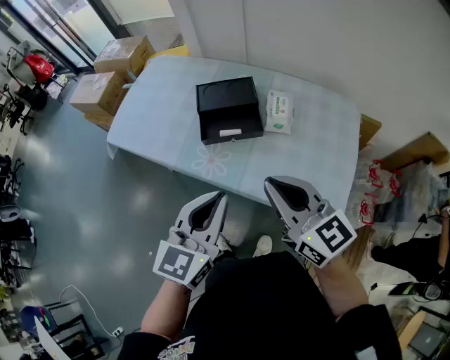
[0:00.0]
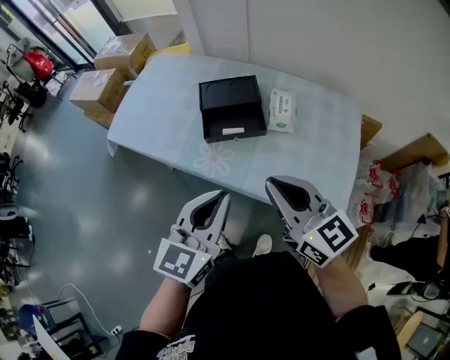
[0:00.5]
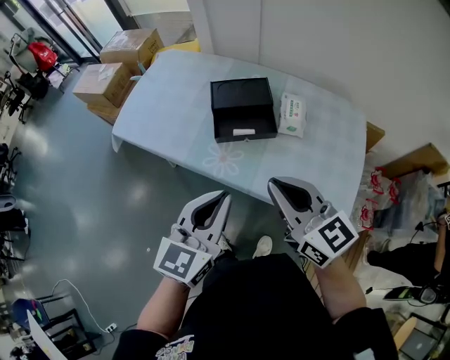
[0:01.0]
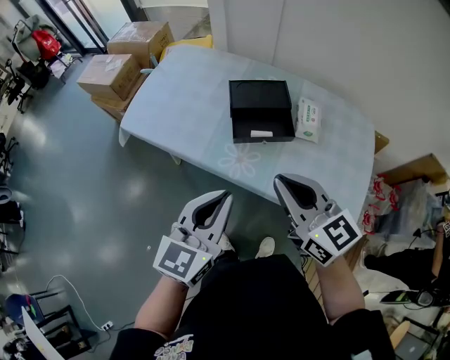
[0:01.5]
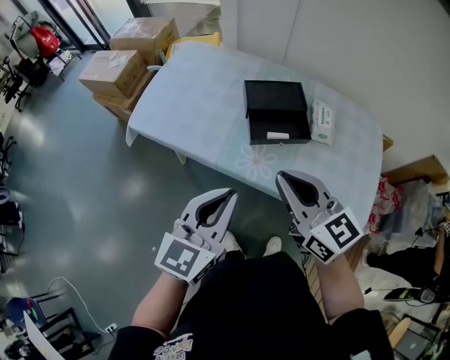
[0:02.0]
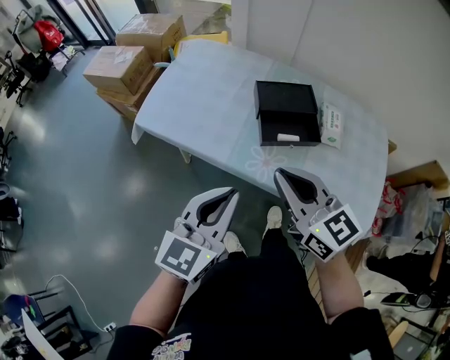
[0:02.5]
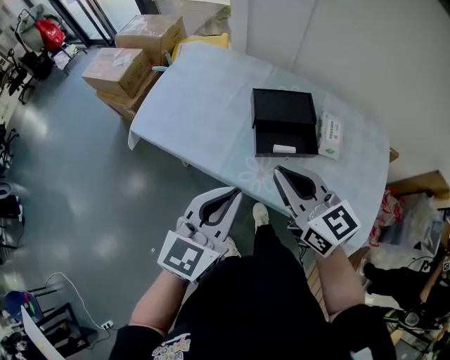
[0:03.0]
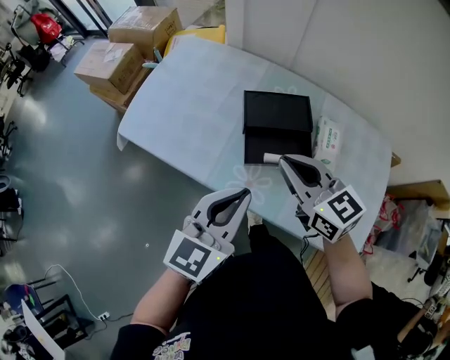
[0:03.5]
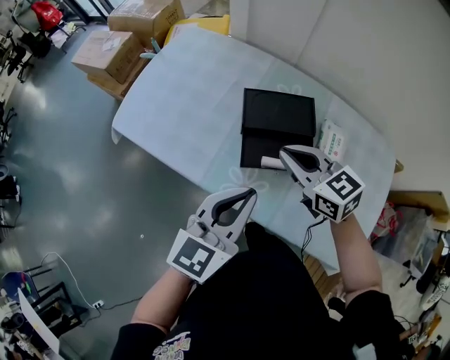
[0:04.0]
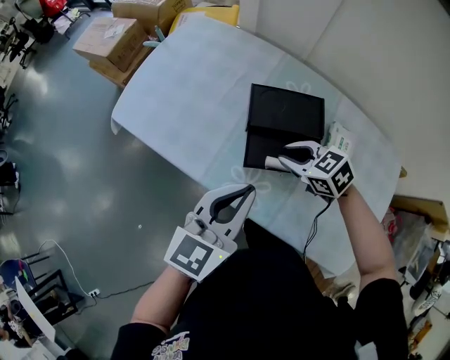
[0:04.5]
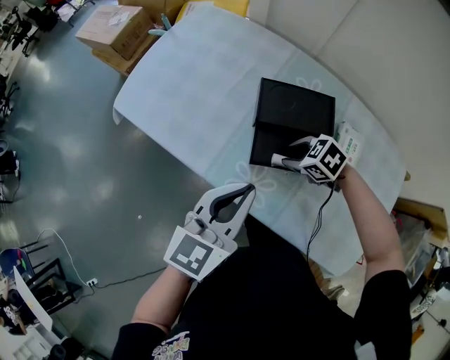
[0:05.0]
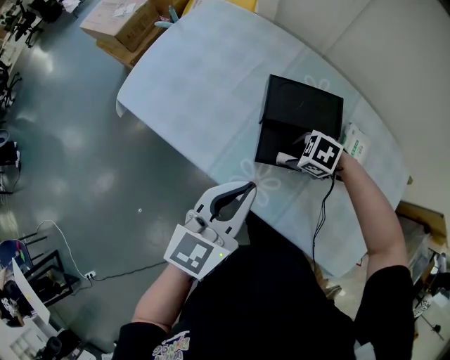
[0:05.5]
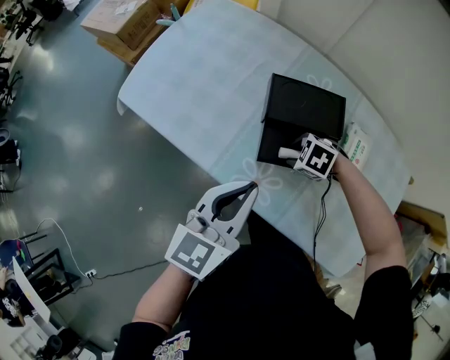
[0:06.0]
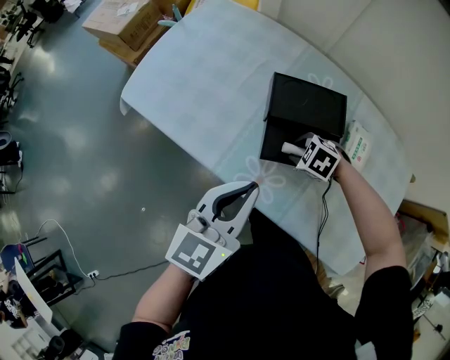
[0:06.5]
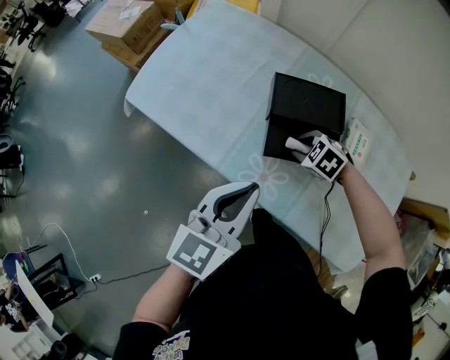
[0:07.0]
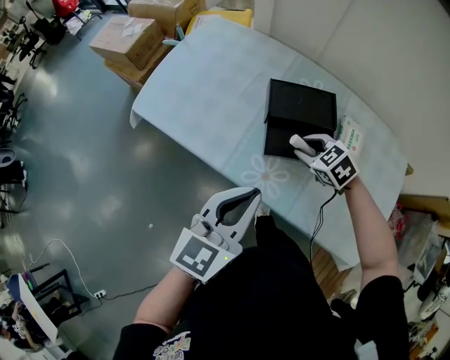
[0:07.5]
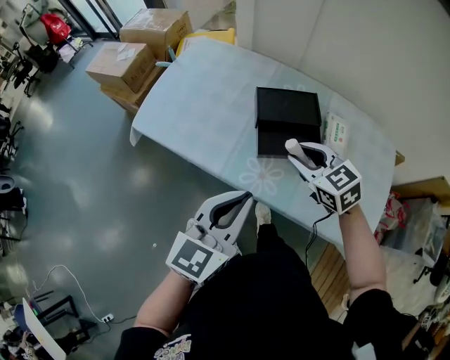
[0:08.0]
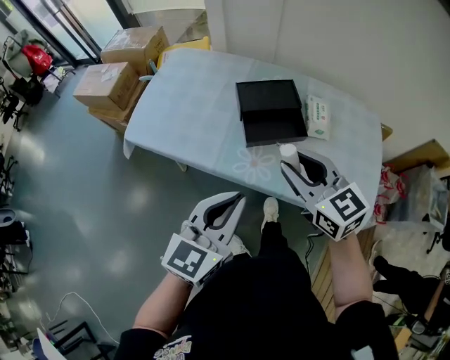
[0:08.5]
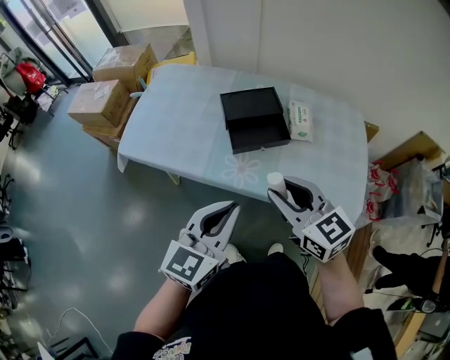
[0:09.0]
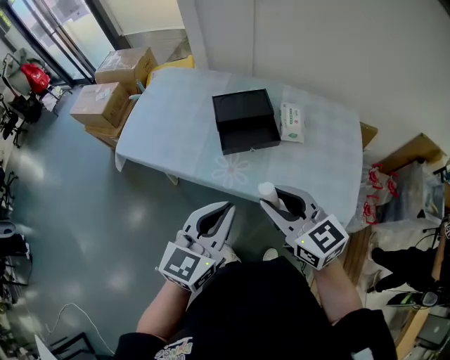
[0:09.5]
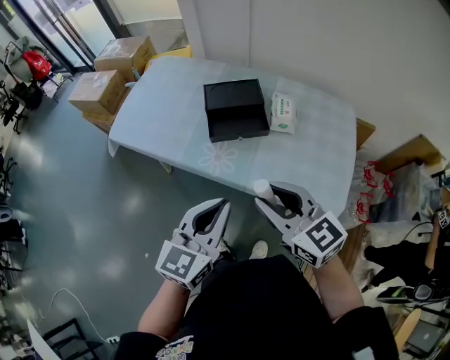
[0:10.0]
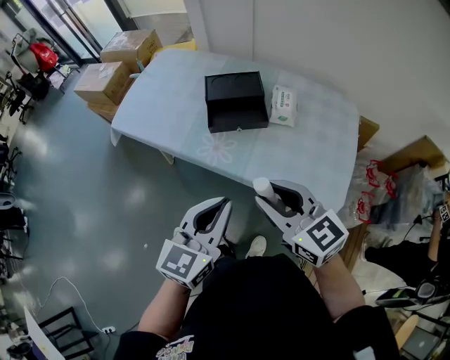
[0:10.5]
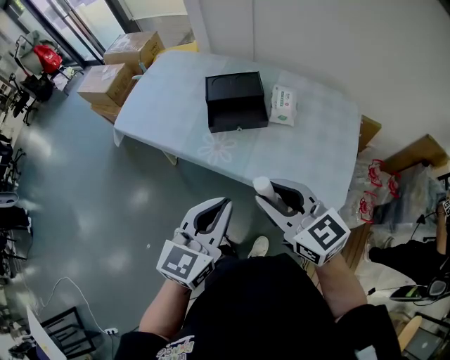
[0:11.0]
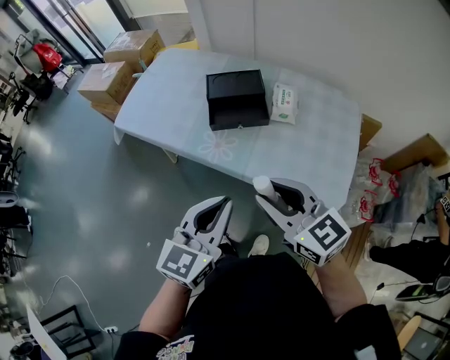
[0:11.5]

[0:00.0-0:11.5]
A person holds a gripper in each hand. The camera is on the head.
0:00.0 to 0:02.0: Both grippers move to the left, about 15 cm.
0:02.0 to 0:04.0: The right gripper goes about 25 cm forward and downward, and swivels about 20 degrees, while the left gripper is displaced forward and to the right by approximately 20 cm.
0:04.0 to 0:06.0: The left gripper moves approximately 5 cm. The right gripper shifts approximately 20 cm downward, tilts its fingers about 50 degrees downward, and opens.
0:06.0 to 0:07.5: The right gripper heads upward, covering roughly 10 cm, and rotates about 30 degrees; the left gripper shifts by about 10 cm.
0:07.5 to 0:09.5: The left gripper moves backward, approximately 15 cm, while the right gripper heads backward and upward, covering approximately 35 cm, and angles its fingers upward, by some 40 degrees.
0:09.5 to 0:11.5: The two grippers go about 10 cm backward and to the right.

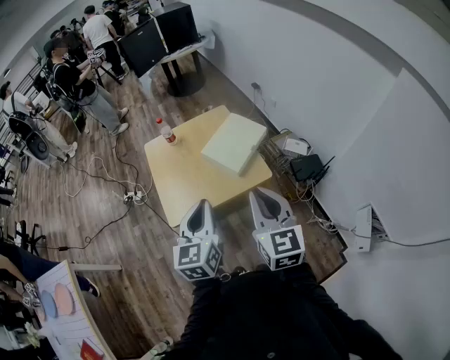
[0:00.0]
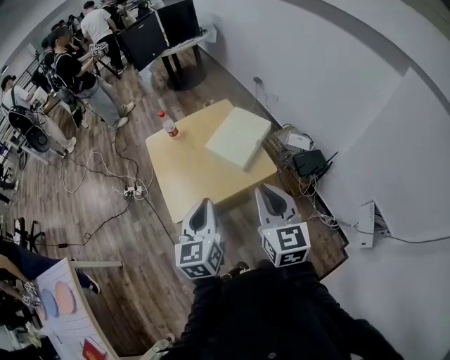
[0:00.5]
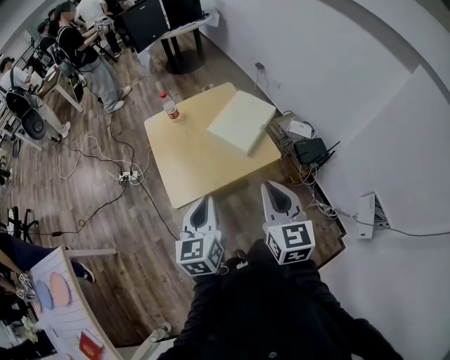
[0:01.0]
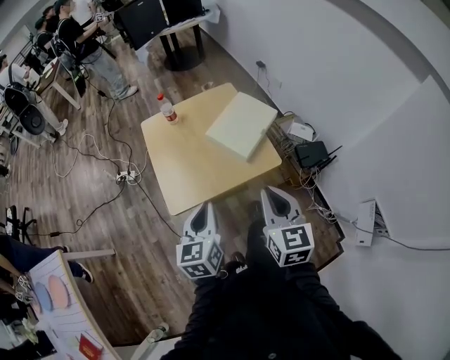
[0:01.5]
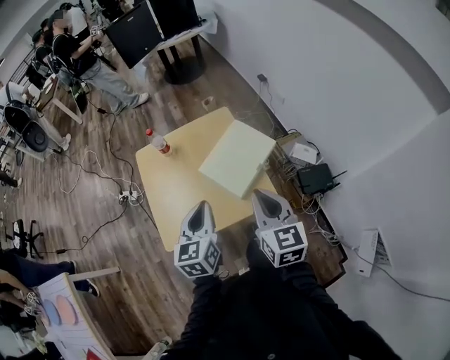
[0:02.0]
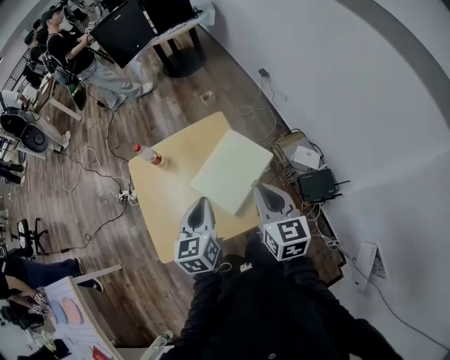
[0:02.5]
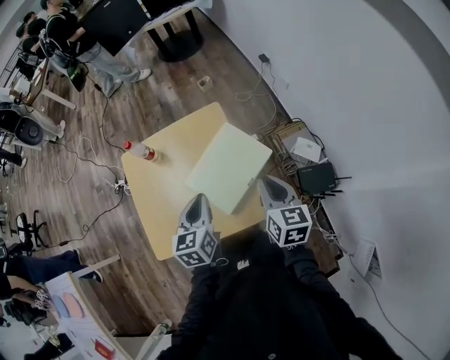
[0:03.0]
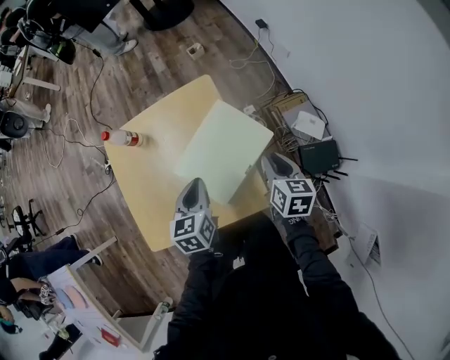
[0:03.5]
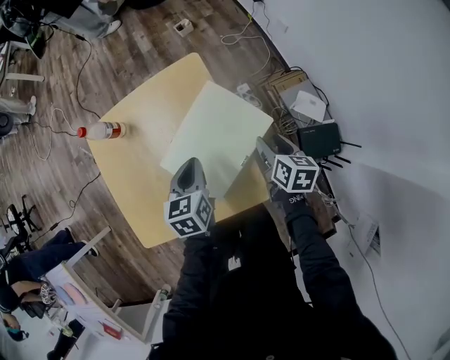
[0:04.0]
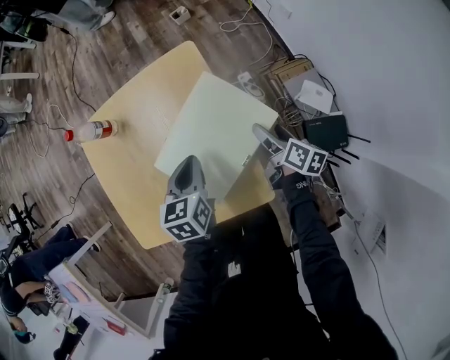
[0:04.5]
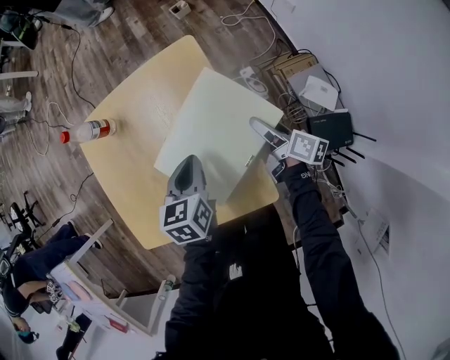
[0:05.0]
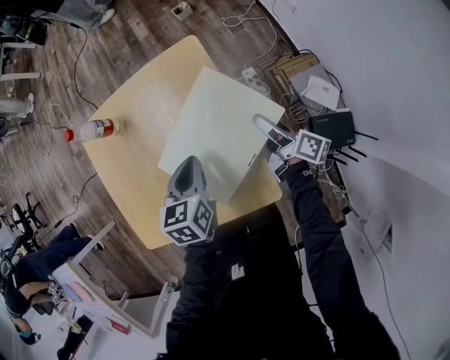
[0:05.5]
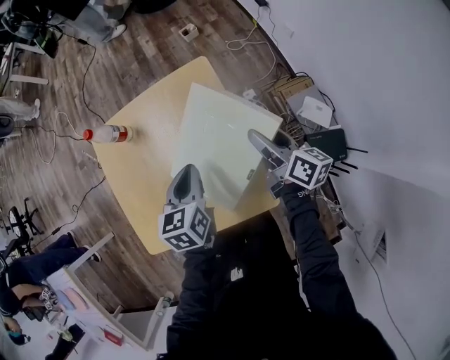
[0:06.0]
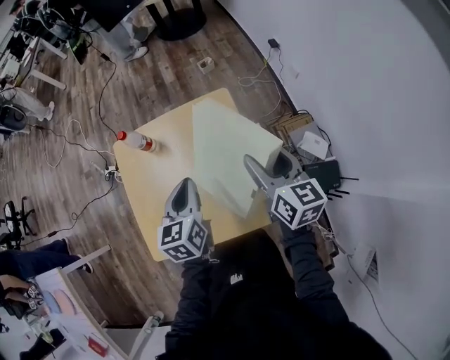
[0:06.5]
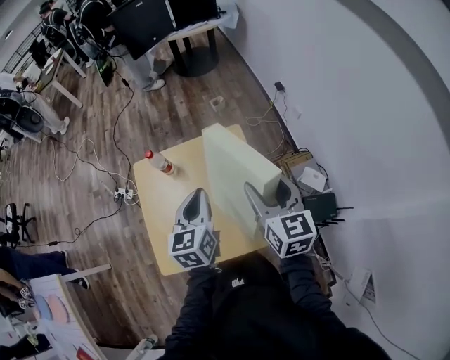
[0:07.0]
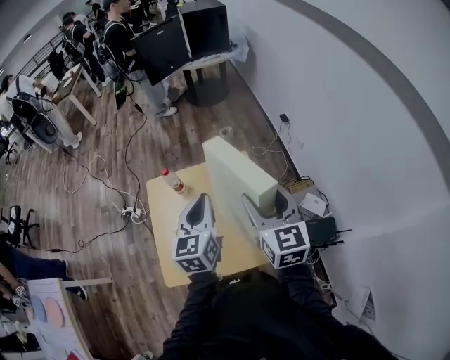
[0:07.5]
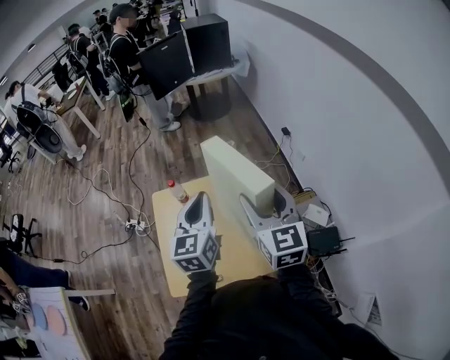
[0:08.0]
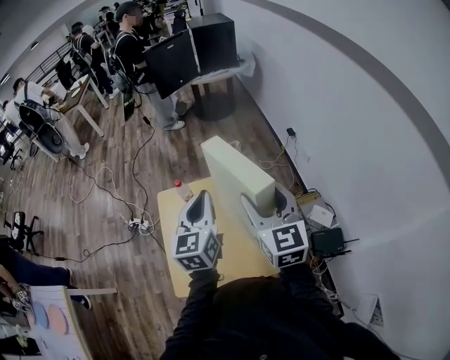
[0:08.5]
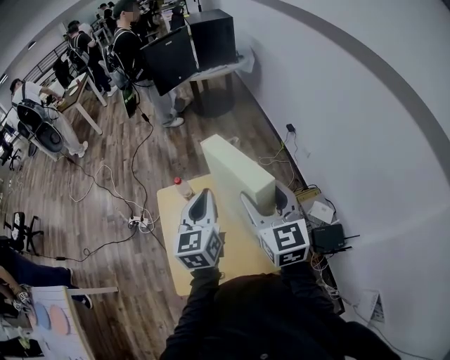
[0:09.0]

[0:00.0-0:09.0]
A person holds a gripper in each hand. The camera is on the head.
0:00.0 to 0:02.0: The right gripper travels forward by approximately 20 cm; the left gripper is displaced forward and downward by roughly 20 cm.
0:02.0 to 0:04.5: The grippers both shift downward, forward and to the right by about 40 cm. The left gripper rotates roughly 20 degrees. Meanwhile the right gripper rolls clockwise, seen from behind, by about 50 degrees, and opens up.
0:04.5 to 0:07.0: The right gripper shifts roughly 40 cm upward and to the left, and rolls counterclockwise, seen from behind, by roughly 50 degrees. Meanwhile the left gripper moves upward and to the left, about 25 cm, and turns by approximately 20 degrees.
0:07.0 to 0:09.0: Both grippers travel together upward and to the left, about 15 cm.

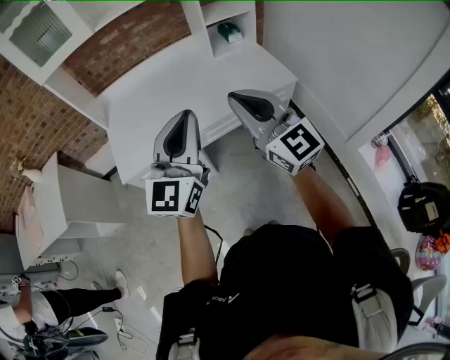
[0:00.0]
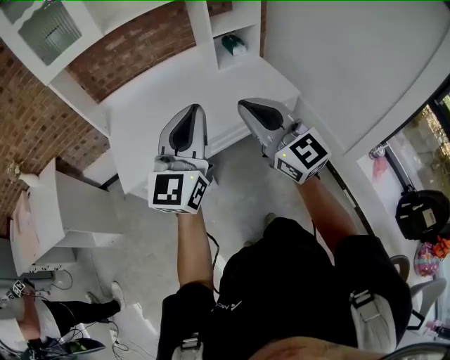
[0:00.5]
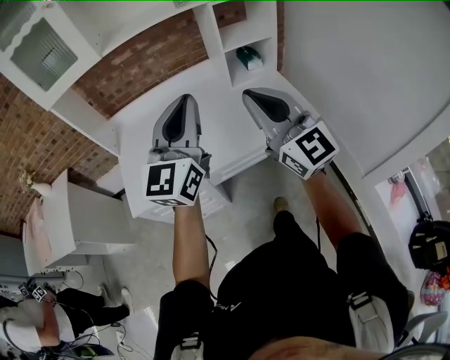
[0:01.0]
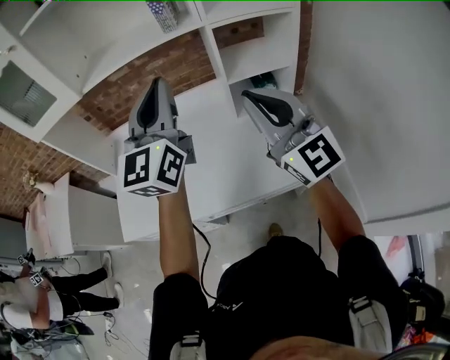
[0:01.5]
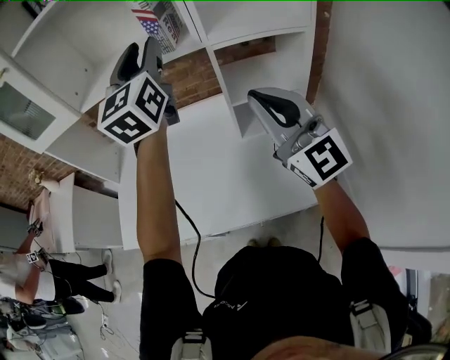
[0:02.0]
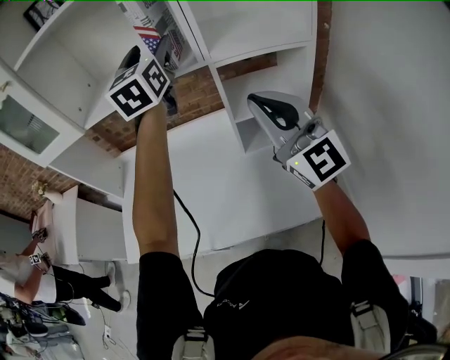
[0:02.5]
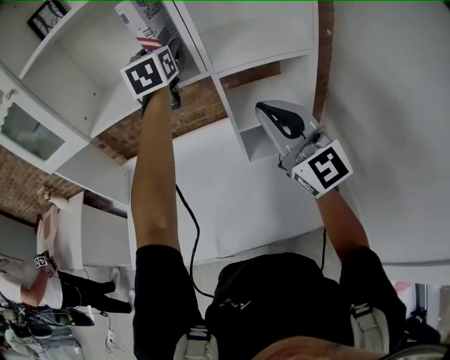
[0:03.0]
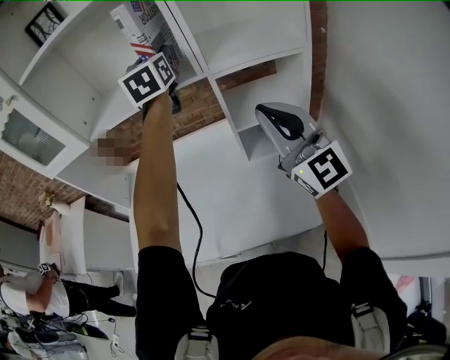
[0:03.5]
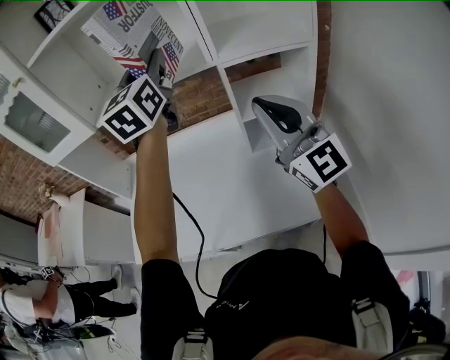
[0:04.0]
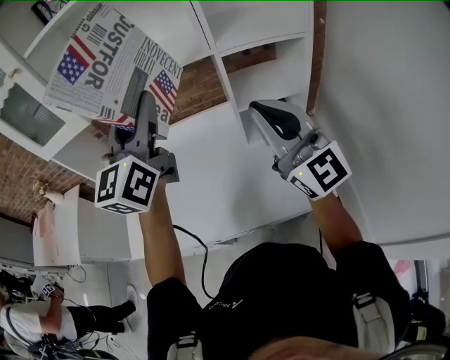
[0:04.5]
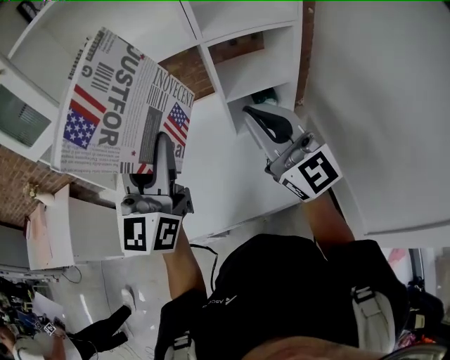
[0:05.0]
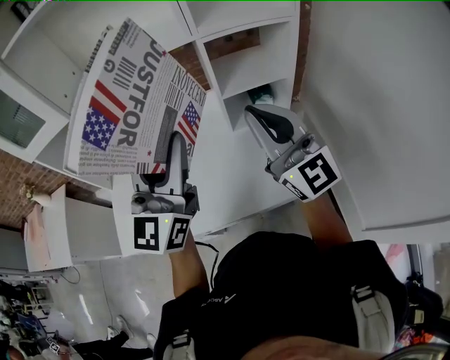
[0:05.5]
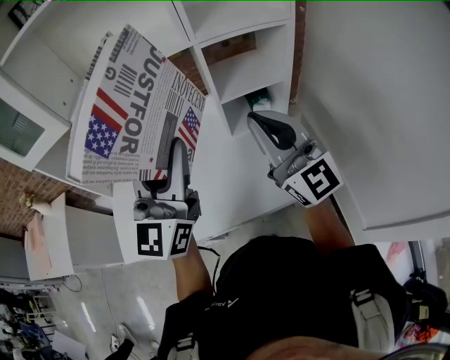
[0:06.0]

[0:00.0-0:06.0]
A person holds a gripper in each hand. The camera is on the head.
0:00.0 to 0:02.0: Both grippers are carried forward, roughly 50 cm. The left gripper changes its angle by some 30 degrees, and opens its fingers.
0:02.0 to 0:04.0: The left gripper reaches about 15 cm forward, then returns, and opens and closes again.
0:04.0 to 0:06.0: The left gripper travels backward and downward by approximately 25 cm, while the right gripper shifts approximately 10 cm downward and backward.
